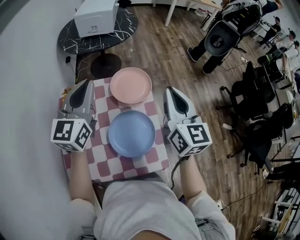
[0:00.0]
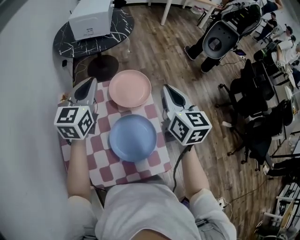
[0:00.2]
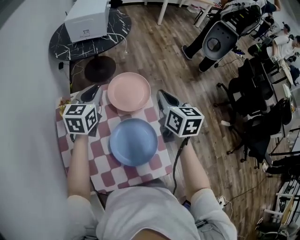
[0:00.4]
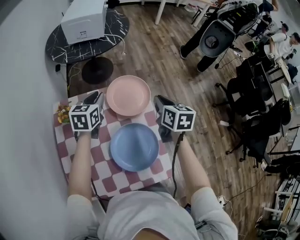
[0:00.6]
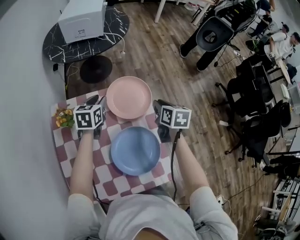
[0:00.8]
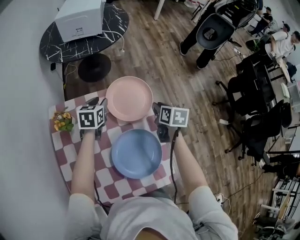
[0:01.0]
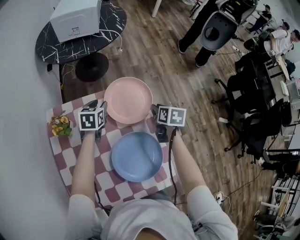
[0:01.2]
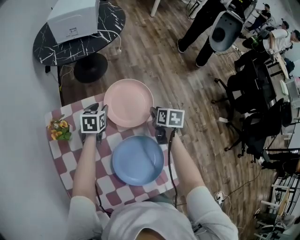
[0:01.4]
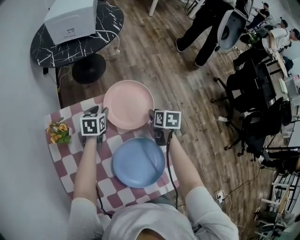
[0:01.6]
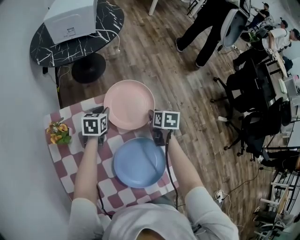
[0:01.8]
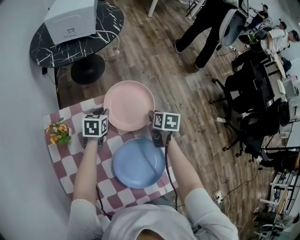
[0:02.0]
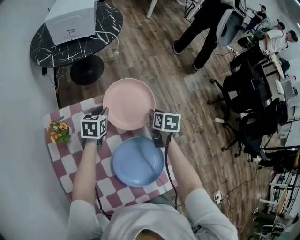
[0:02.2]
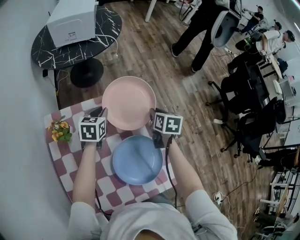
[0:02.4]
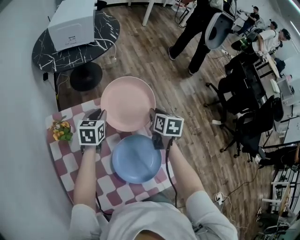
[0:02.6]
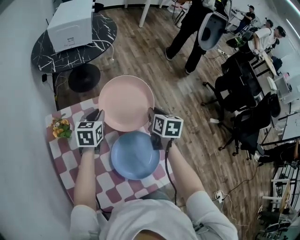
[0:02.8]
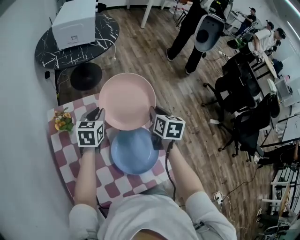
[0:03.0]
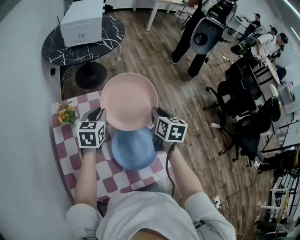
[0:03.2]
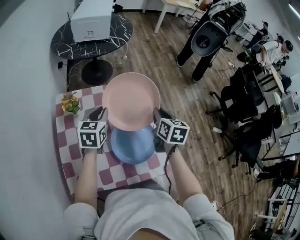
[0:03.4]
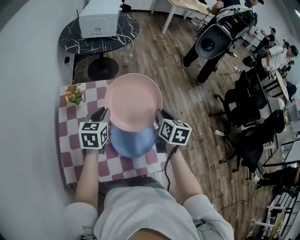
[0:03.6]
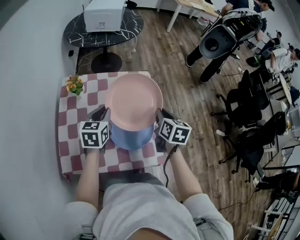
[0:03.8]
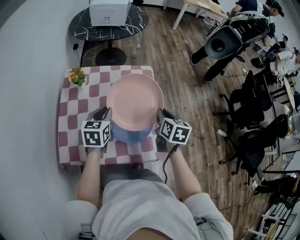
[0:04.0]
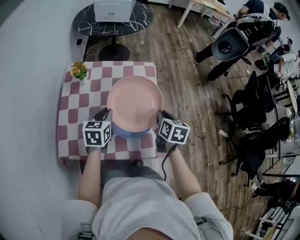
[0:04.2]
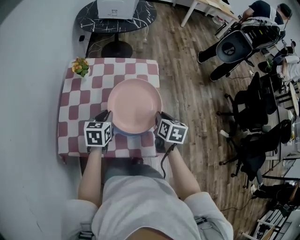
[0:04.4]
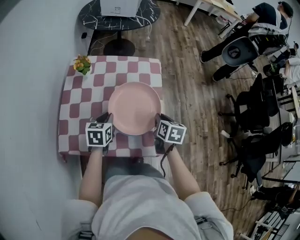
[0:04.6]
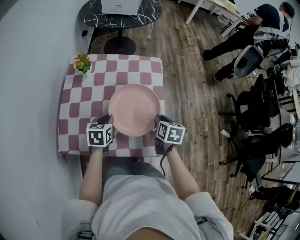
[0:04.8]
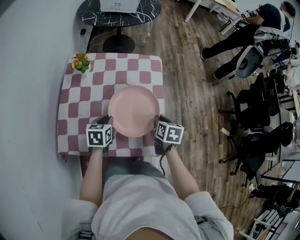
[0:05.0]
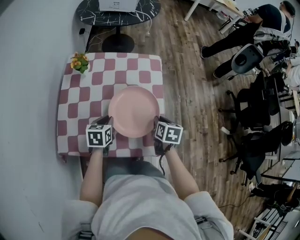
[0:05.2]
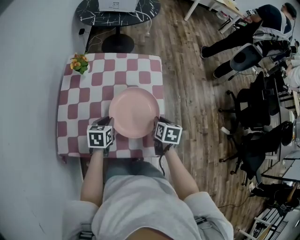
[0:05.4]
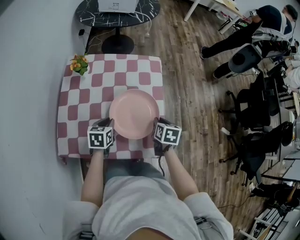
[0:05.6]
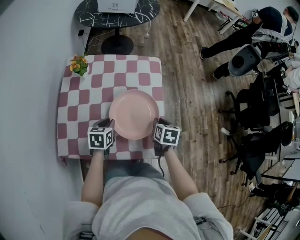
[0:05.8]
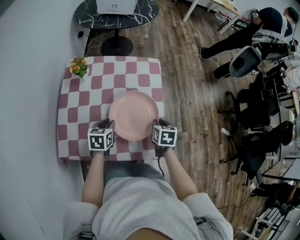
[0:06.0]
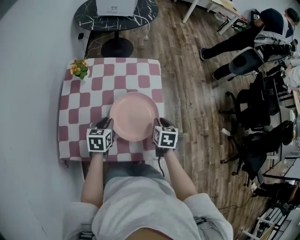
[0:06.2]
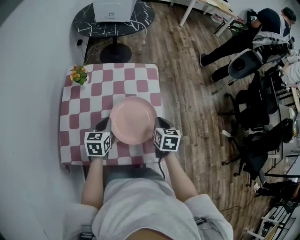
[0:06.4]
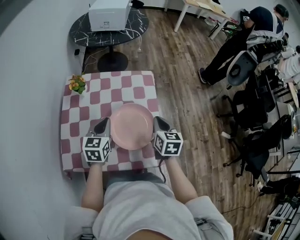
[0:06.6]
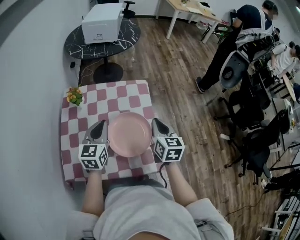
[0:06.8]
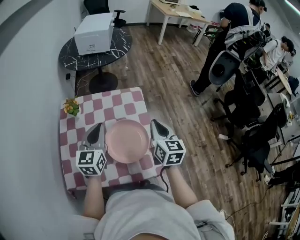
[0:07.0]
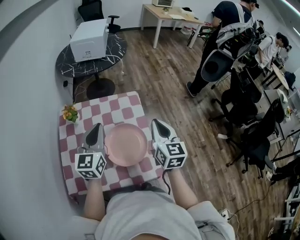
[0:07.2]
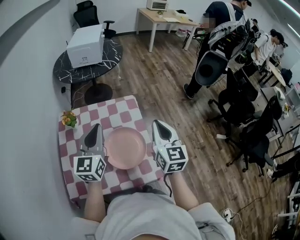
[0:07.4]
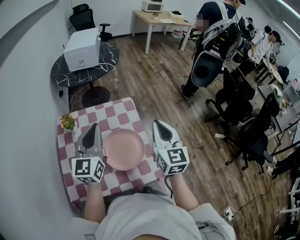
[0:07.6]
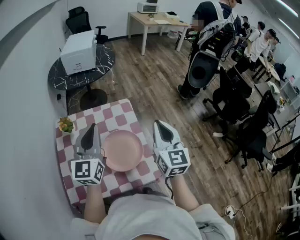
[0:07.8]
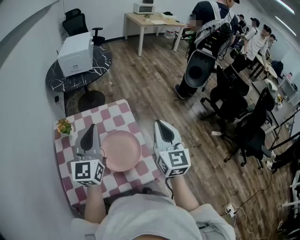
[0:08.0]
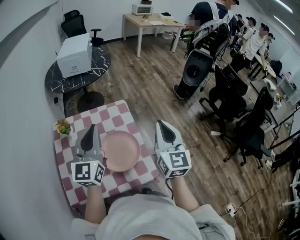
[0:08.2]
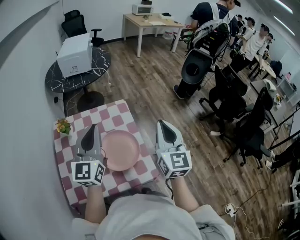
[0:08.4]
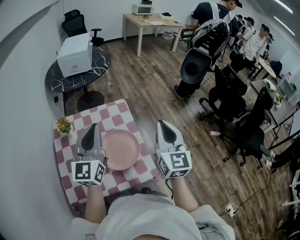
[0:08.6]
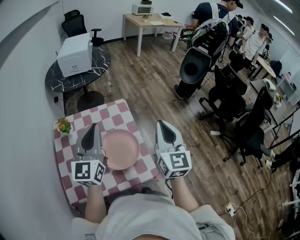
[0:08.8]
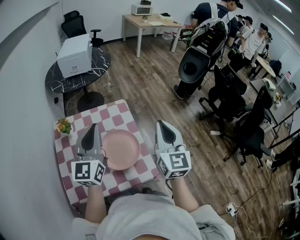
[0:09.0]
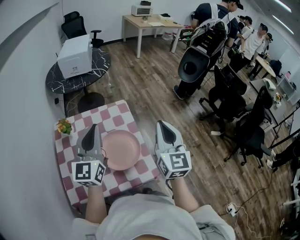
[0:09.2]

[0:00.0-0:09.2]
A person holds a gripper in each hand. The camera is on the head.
0:00.0 to 0:01.6: The left gripper shifts roughly 40 cm downward and forward, angles its fingers downward, by about 50 degrees, and opens, while the right gripper is displaced downward by approximately 35 cm, tilts its fingers some 50 degrees downward, and opens its fingers.
0:01.6 to 0:03.0: The grippers both shift upward and backward by roughly 15 cm. The right gripper swivels some 20 degrees. Meanwhile the left gripper closes up.
0:03.0 to 0:04.6: The left gripper is displaced backward by some 25 cm, and turns by about 20 degrees. The right gripper heads backward and downward, covering roughly 20 cm.
0:04.6 to 0:06.2: The grippers move only a little.
0:06.2 to 0:07.6: Both grippers travel together upward, roughly 30 cm. The left gripper angles its fingers upward, by roughly 50 degrees, and closes. The right gripper angles its fingers upward, by approximately 50 degrees, and closes its fingers.
0:07.6 to 0:09.2: The right gripper changes place by approximately 5 cm.

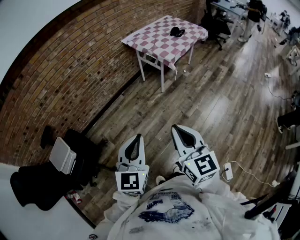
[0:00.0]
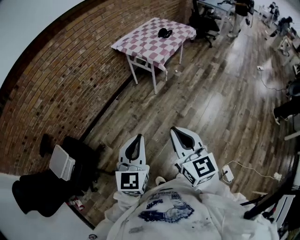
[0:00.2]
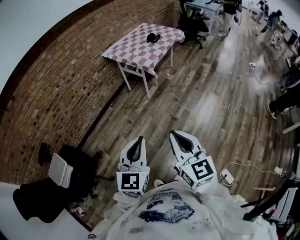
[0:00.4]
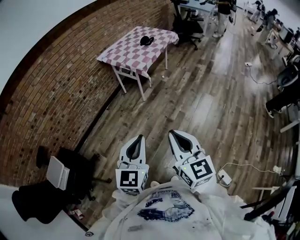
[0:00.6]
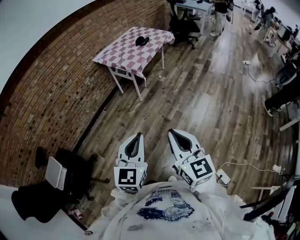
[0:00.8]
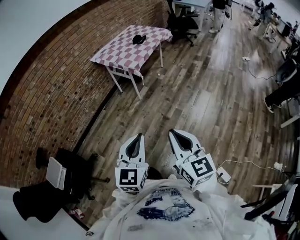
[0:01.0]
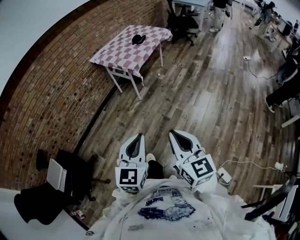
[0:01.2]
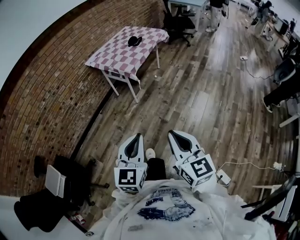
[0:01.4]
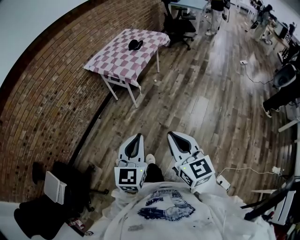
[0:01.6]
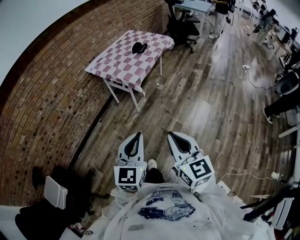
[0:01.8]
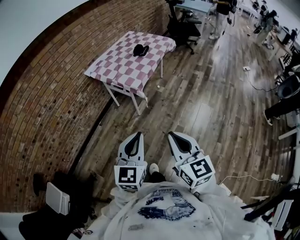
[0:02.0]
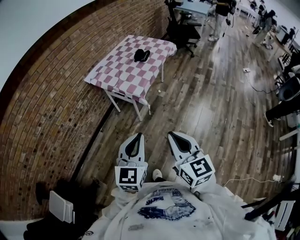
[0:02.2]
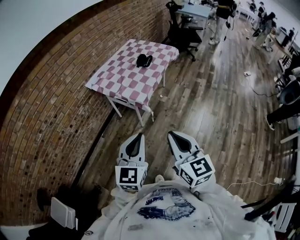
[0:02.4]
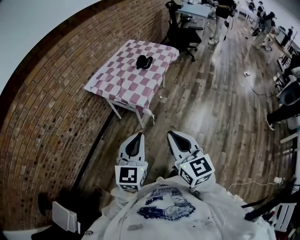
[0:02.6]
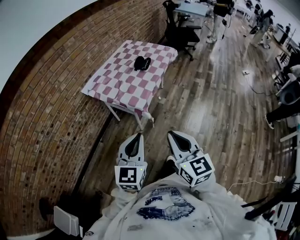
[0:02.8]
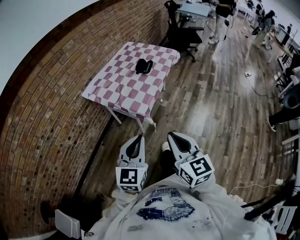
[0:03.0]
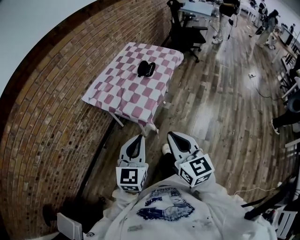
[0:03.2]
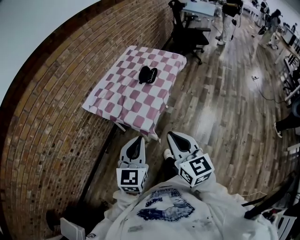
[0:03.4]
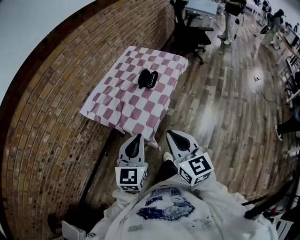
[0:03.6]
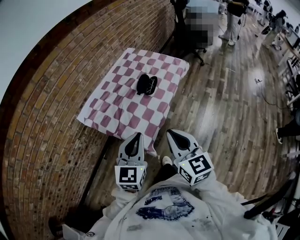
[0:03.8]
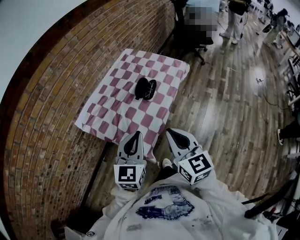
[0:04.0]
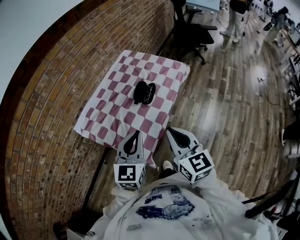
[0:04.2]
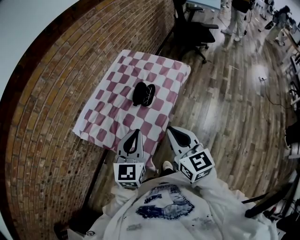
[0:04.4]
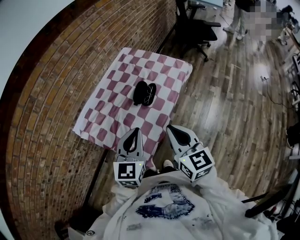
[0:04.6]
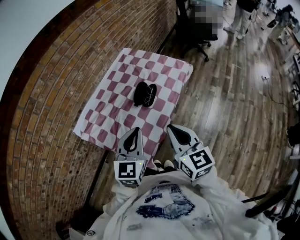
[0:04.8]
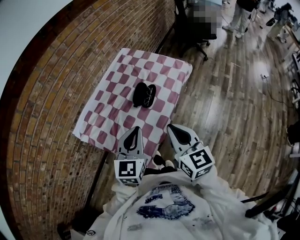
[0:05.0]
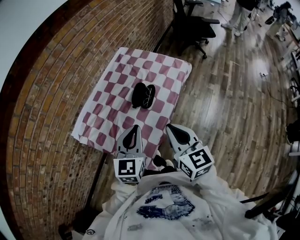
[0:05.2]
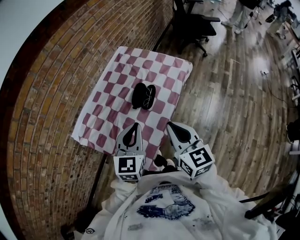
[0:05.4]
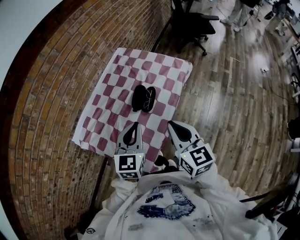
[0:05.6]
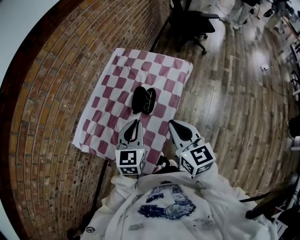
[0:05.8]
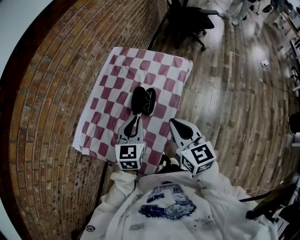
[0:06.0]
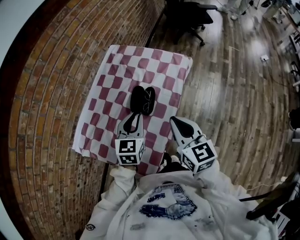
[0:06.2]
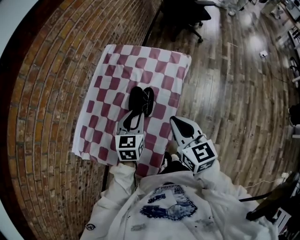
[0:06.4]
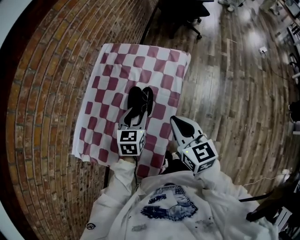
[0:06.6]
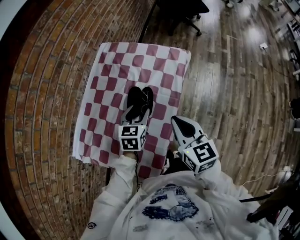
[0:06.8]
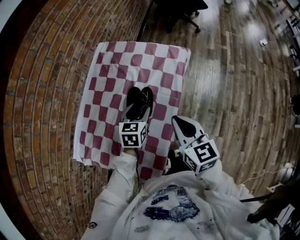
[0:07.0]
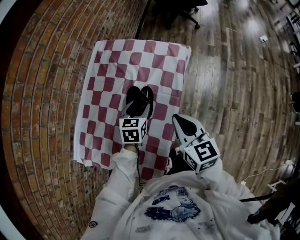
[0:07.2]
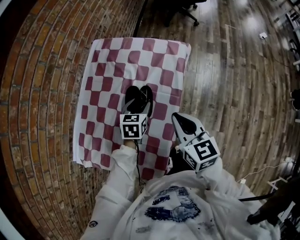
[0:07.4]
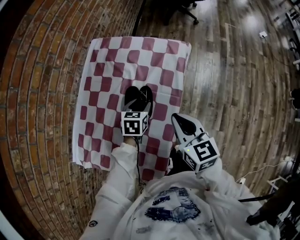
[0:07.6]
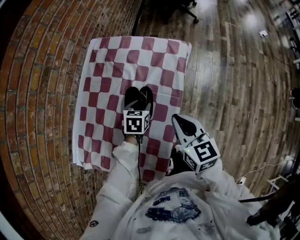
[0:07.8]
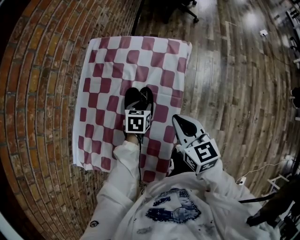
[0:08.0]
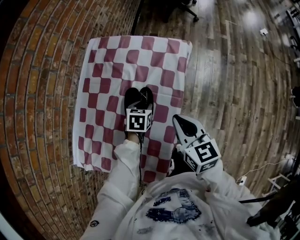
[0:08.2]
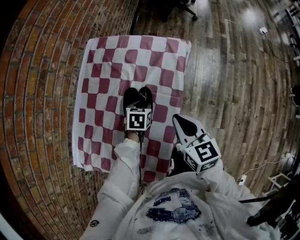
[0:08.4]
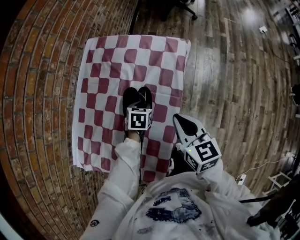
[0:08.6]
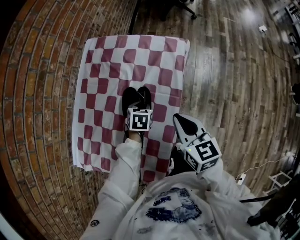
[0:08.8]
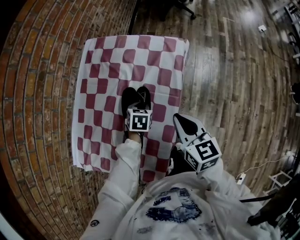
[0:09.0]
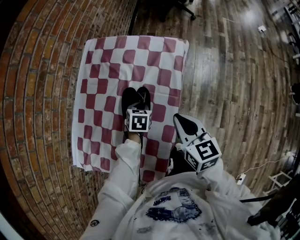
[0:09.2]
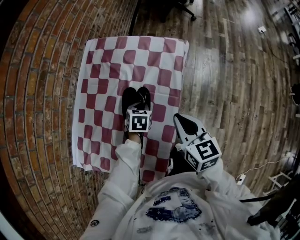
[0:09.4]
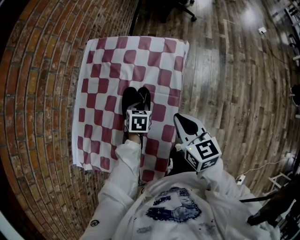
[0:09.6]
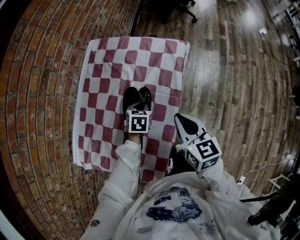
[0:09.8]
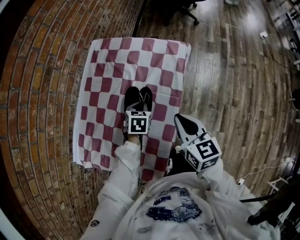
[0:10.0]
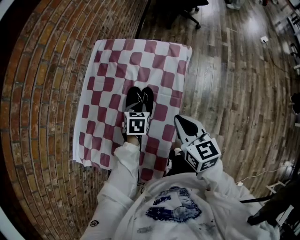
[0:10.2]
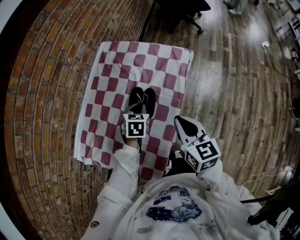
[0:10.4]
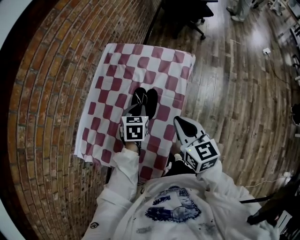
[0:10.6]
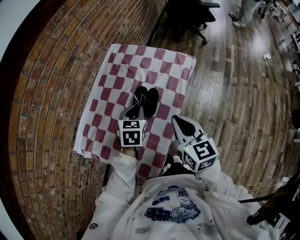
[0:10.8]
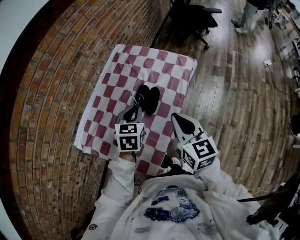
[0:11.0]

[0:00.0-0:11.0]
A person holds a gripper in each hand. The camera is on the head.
0:00.0 to 0:01.6: The left gripper is displaced to the right and forward by approximately 20 cm, while the right gripper moves to the right, roughly 20 cm.
0:01.6 to 0:03.2: The two grippers travel together, forward, roughly 40 cm.
0:03.2 to 0:04.8: Both grippers move forward, about 35 cm.
0:04.8 to 0:06.2: The right gripper shifts about 15 cm forward, while the left gripper shifts roughly 20 cm forward and downward.
0:06.2 to 0:07.8: The right gripper heads downward and forward, covering roughly 10 cm; the left gripper is displaced downward and forward by approximately 20 cm, rotates roughly 30 degrees, and opens.
0:07.8 to 0:09.4: The left gripper closes.
0:09.4 to 0:11.0: The right gripper goes roughly 15 cm upward and backward. The left gripper shifts some 25 cm upward and backward, and changes its angle by approximately 30 degrees.

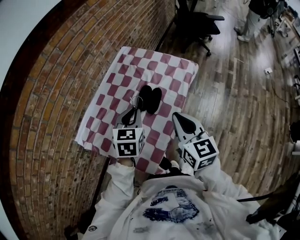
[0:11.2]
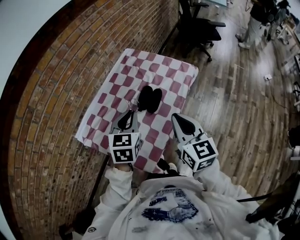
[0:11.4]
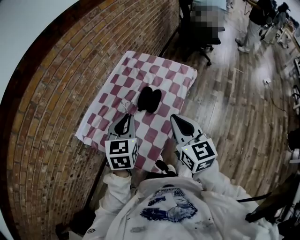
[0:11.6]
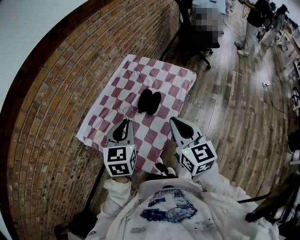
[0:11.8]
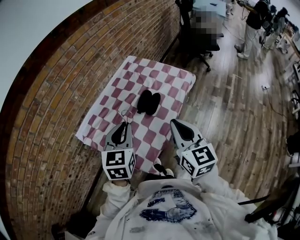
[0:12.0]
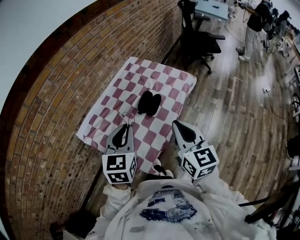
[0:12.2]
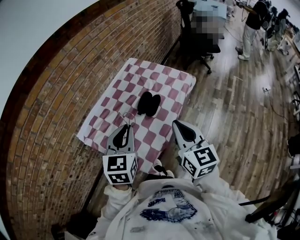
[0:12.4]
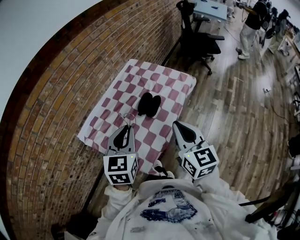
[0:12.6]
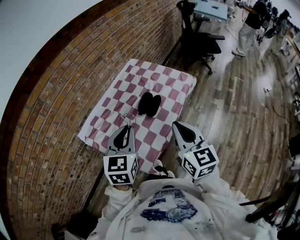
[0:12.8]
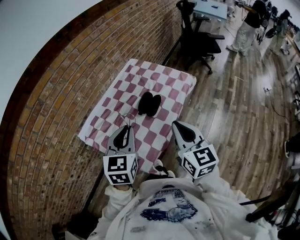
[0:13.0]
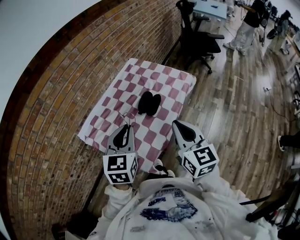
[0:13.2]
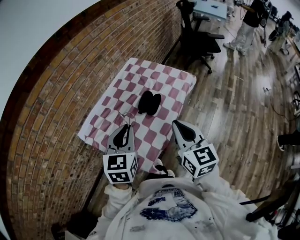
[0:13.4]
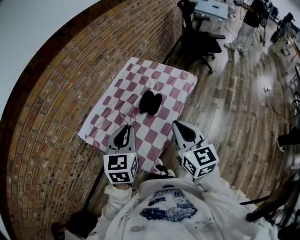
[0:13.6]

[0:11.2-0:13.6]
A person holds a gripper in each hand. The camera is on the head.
0:11.2 to 0:12.4: The left gripper is displaced backward and upward by approximately 15 cm; the right gripper heads backward and upward, covering roughly 10 cm.
0:12.4 to 0:13.6: The two grippers keep their place.

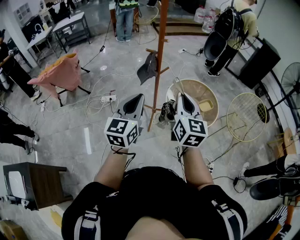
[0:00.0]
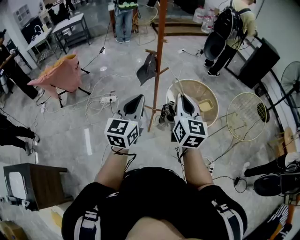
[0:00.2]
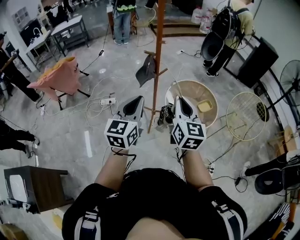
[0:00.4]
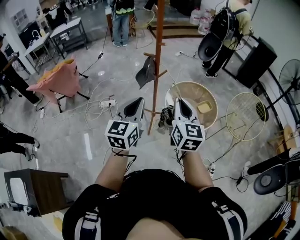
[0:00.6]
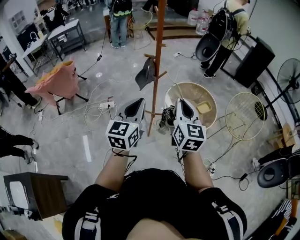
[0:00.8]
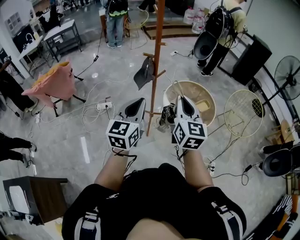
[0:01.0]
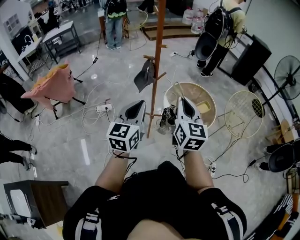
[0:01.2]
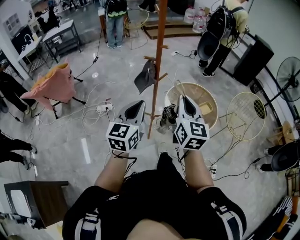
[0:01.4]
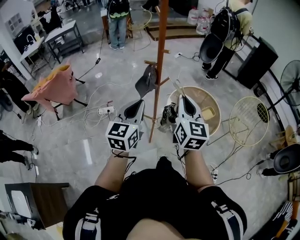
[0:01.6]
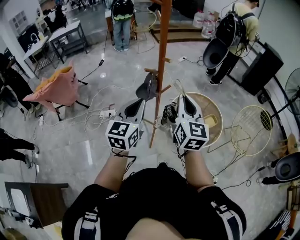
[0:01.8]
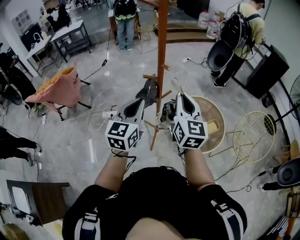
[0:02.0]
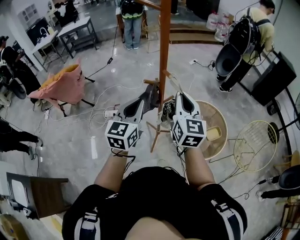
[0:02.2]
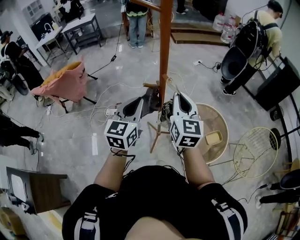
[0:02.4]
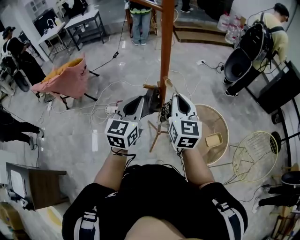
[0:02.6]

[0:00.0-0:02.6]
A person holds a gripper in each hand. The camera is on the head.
0:00.0 to 0:01.2: The left gripper moves roughly 5 cm.
0:01.2 to 0:02.6: Both grippers travel together forward, roughly 35 cm.
